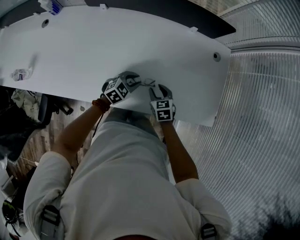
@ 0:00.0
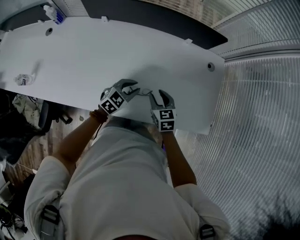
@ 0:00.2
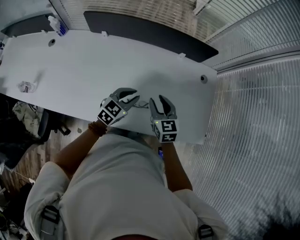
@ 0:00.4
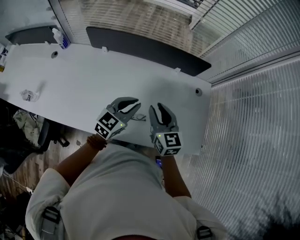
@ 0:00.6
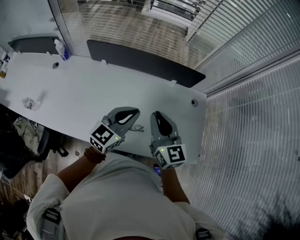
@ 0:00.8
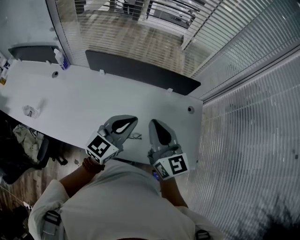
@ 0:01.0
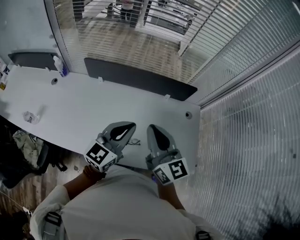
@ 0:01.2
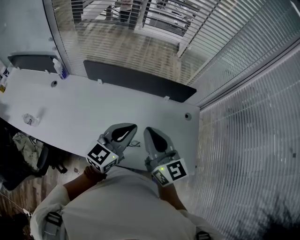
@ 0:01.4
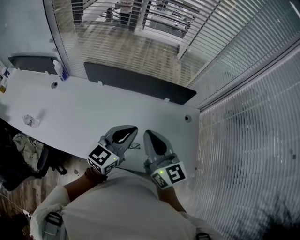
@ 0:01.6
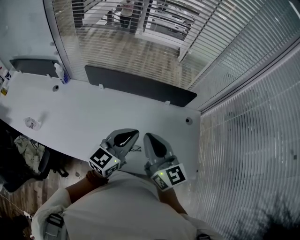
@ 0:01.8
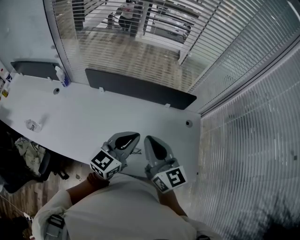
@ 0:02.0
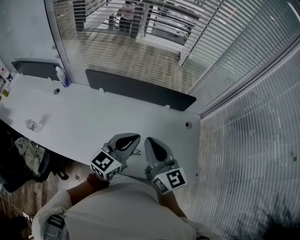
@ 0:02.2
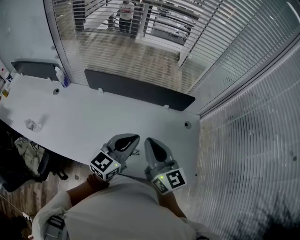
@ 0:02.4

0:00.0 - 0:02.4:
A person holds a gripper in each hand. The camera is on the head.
0:00.0 - 0:01.2: Both grippers move upward, some 40 cm. The right gripper tilts its fingers roughly 50 degrees upward, and closes its fingers. Meanwhile the left gripper tips its fingers upward by some 40 degrees, and closes its fingers.
0:01.2 - 0:02.4: There are only small adjustments of the grippers.

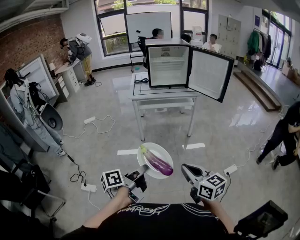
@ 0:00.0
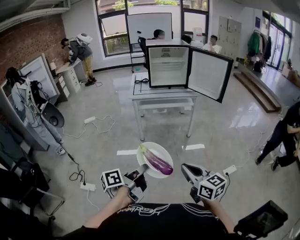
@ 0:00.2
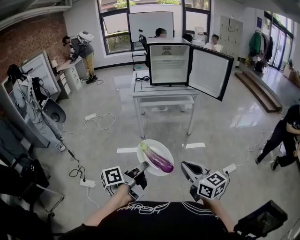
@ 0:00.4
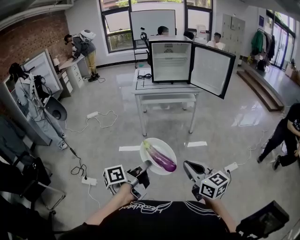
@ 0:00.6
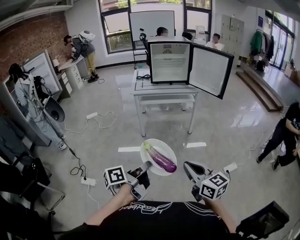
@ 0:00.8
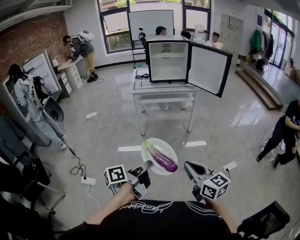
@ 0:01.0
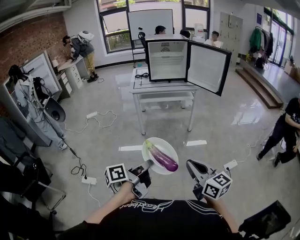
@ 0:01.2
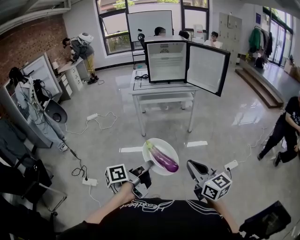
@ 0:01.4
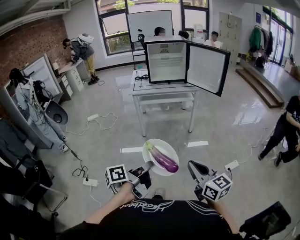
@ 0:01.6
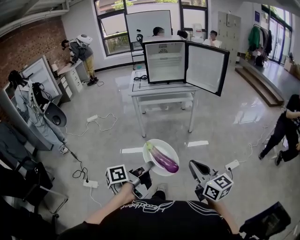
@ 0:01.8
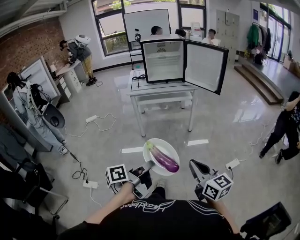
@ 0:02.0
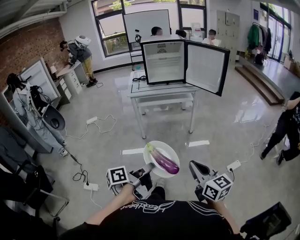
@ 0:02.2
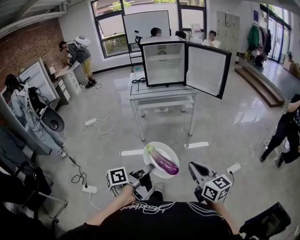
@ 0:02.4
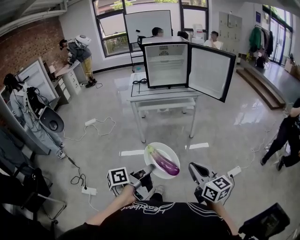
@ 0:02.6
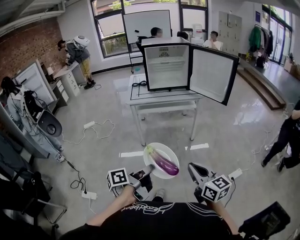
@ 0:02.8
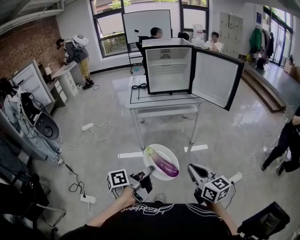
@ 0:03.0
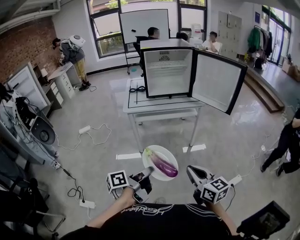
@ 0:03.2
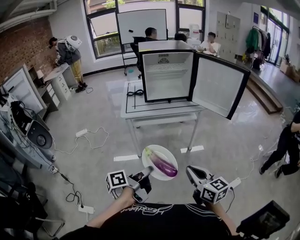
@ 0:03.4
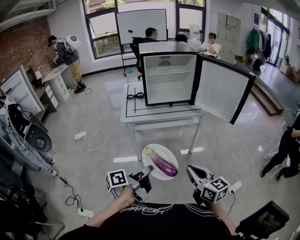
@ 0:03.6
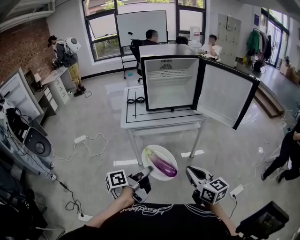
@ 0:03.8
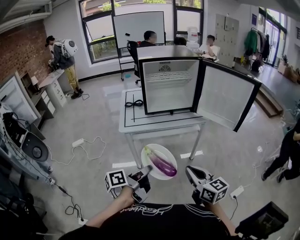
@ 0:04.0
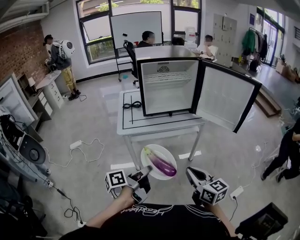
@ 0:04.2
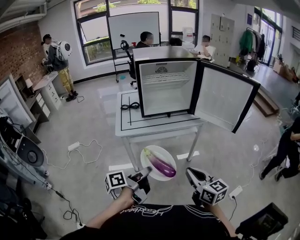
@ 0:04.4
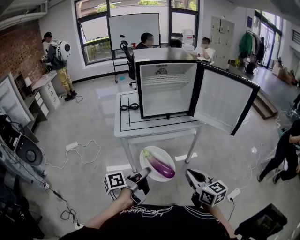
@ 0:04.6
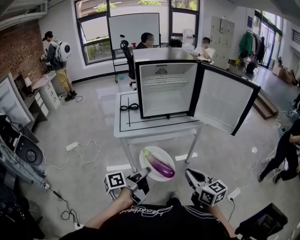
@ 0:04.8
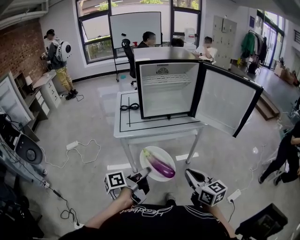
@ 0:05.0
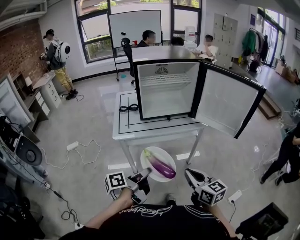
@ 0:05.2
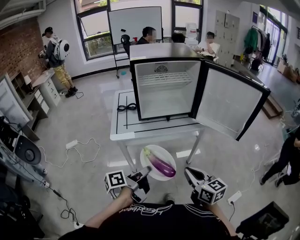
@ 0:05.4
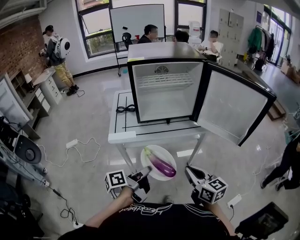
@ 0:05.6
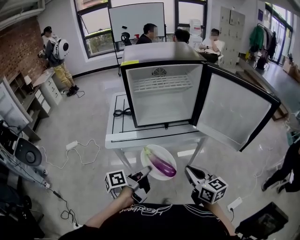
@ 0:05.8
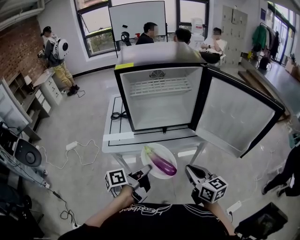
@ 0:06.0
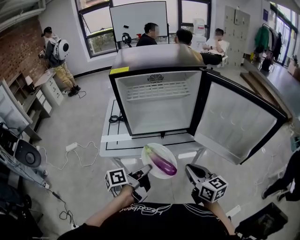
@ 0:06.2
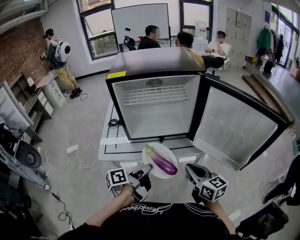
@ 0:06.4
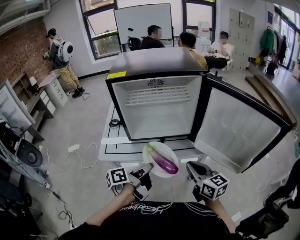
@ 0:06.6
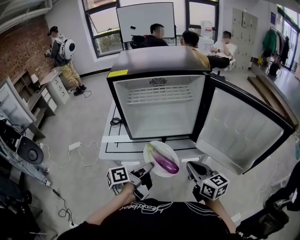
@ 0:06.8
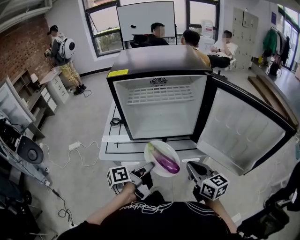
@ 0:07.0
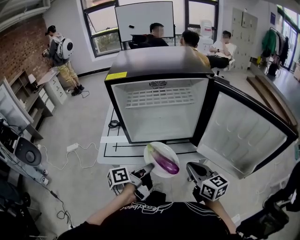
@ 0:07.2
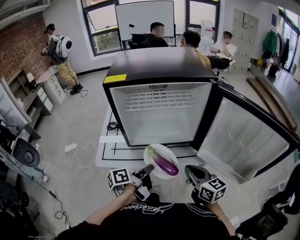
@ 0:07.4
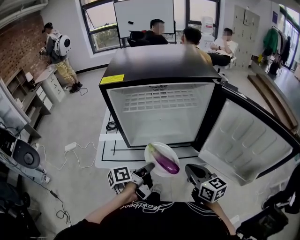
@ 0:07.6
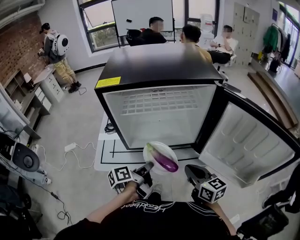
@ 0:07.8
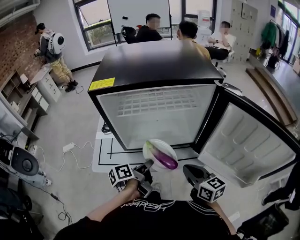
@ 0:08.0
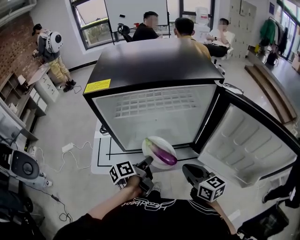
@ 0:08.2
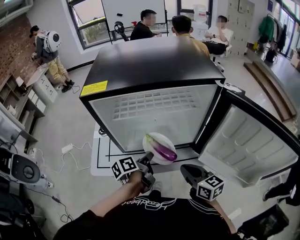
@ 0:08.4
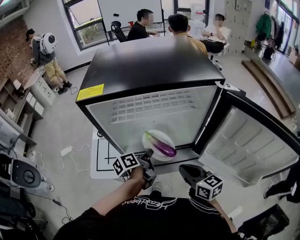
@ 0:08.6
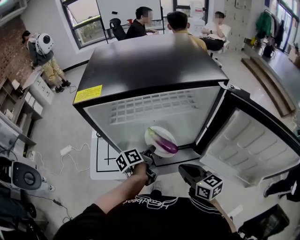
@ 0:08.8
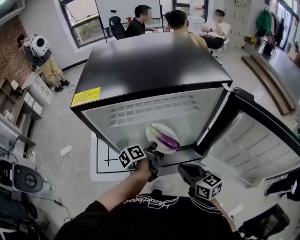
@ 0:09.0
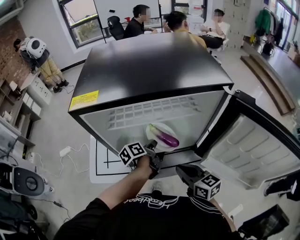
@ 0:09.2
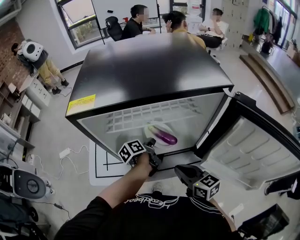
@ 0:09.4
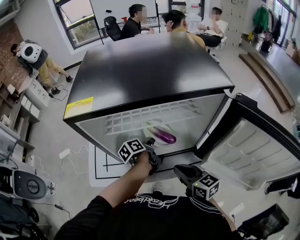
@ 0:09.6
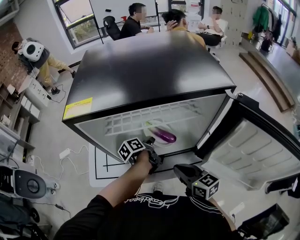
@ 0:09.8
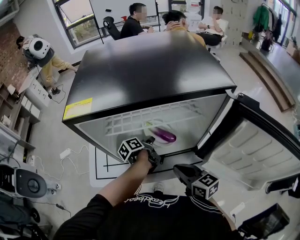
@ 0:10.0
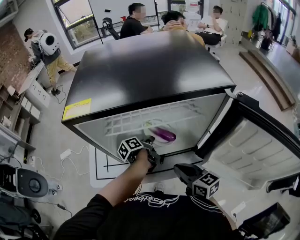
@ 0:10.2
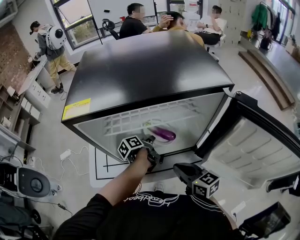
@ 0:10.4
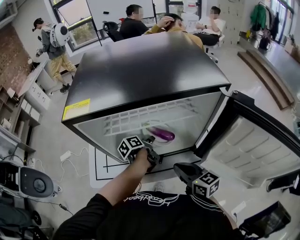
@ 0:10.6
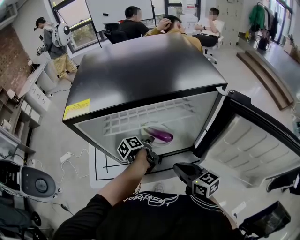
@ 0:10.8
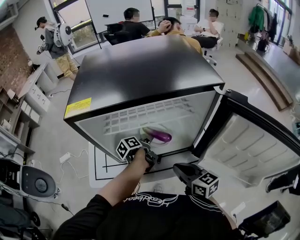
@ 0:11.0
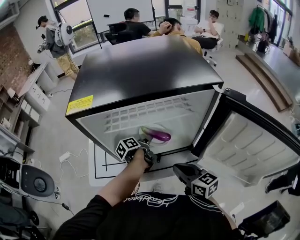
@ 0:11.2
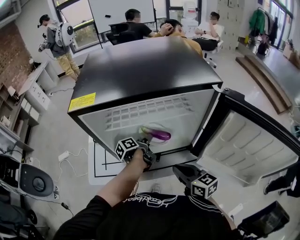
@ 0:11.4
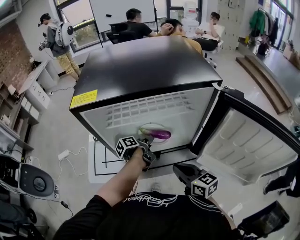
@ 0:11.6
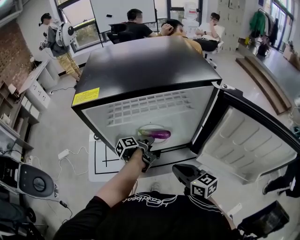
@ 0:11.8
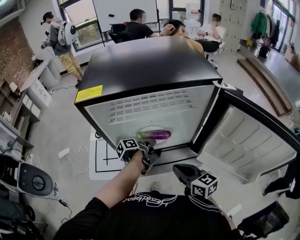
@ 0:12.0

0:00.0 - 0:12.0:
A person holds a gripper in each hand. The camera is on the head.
0:00.0 - 0:01.6: The right gripper moves to the right and backward, some 10 cm. Meanwhile the left gripper travels to the right by about 5 cm.
0:01.6 - 0:03.0: Both grippers travel together forward, some 20 cm.
0:03.0 - 0:04.4: The grippers both shift forward by some 25 cm.
0:04.4 - 0:06.0: Both grippers move forward, some 20 cm.
0:06.0 - 0:07.6: Both grippers move forward, roughly 15 cm.
0:07.6 - 0:09.0: The left gripper heads forward, covering approximately 20 cm. The right gripper travels forward by approximately 5 cm.
0:09.0 - 0:10.4: The left gripper moves forward, some 5 cm.
0:10.4 - 0:12.0: The left gripper travels backward by approximately 5 cm, and opens up.

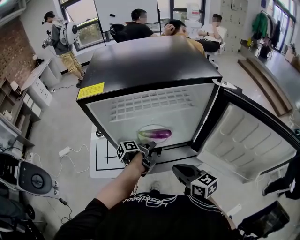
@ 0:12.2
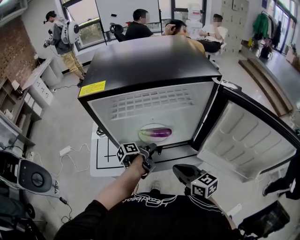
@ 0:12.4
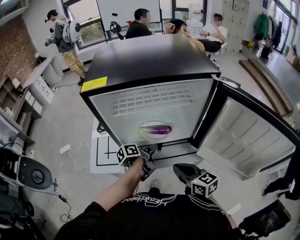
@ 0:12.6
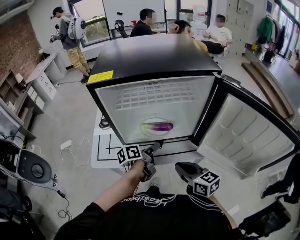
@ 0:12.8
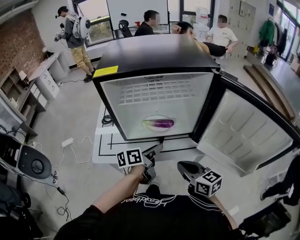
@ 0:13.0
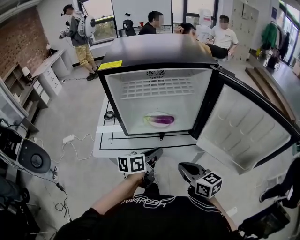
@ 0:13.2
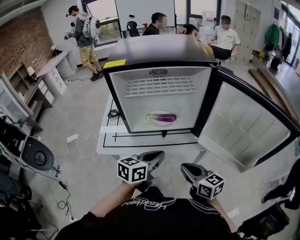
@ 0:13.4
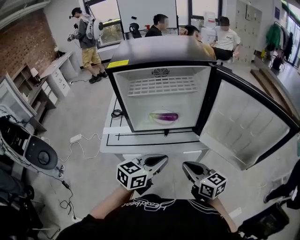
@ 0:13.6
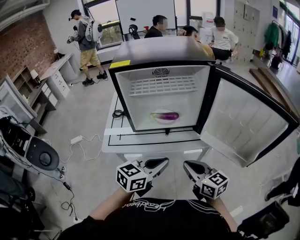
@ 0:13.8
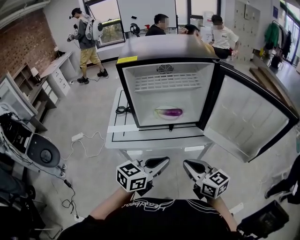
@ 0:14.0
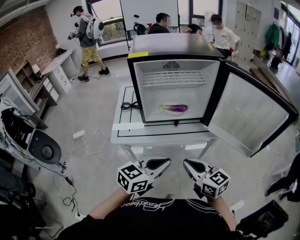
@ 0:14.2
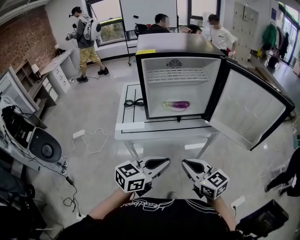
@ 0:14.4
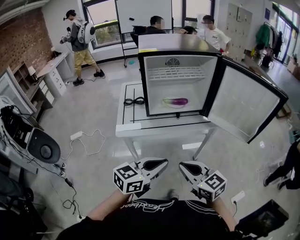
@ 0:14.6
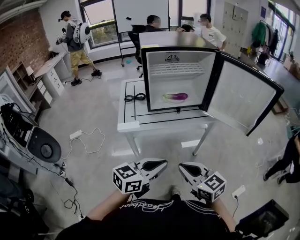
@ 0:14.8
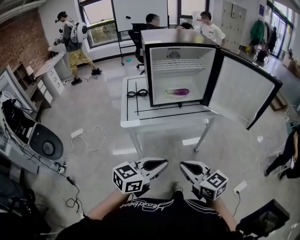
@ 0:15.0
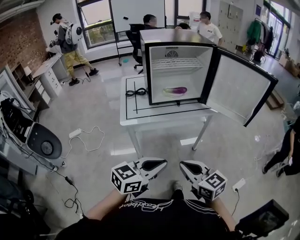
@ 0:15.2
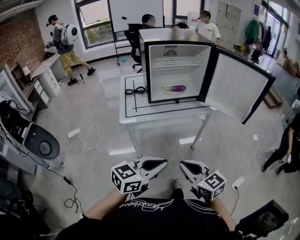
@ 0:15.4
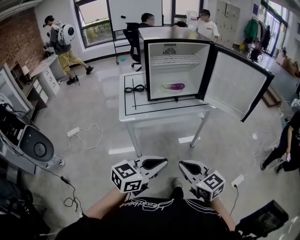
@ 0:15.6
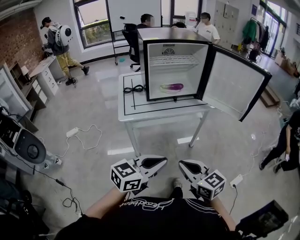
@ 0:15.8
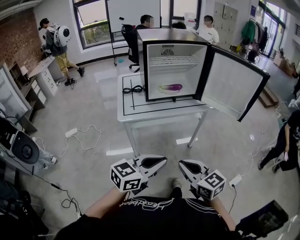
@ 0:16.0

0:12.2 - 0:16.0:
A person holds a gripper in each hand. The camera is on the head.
0:12.2 - 0:13.4: The right gripper goes some 10 cm backward; the left gripper goes approximately 25 cm backward and upward, twists approximately 70 degrees clockwise, seen from behind, and closes up.
0:13.4 - 0:14.8: The left gripper travels backward by some 25 cm, and swivels some 20 degrees; the right gripper moves backward and to the left, roughly 25 cm.
0:14.8 - 0:16.0: The two grippers go roughly 10 cm backward.

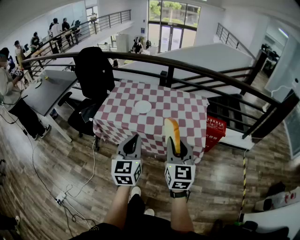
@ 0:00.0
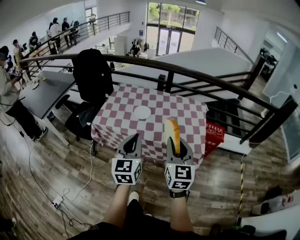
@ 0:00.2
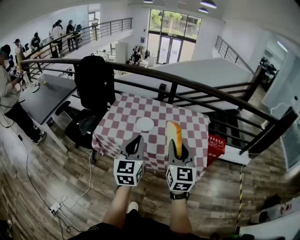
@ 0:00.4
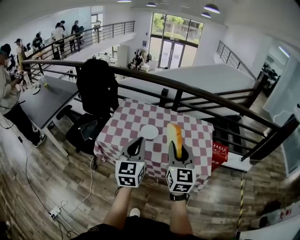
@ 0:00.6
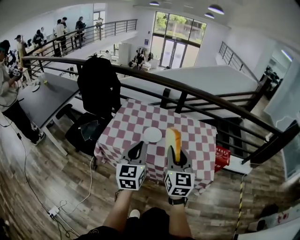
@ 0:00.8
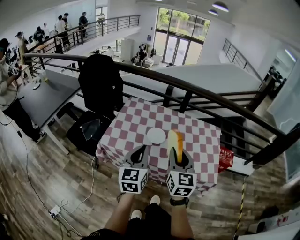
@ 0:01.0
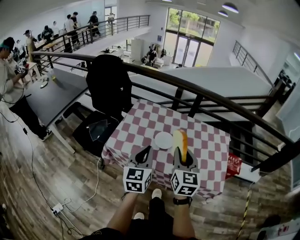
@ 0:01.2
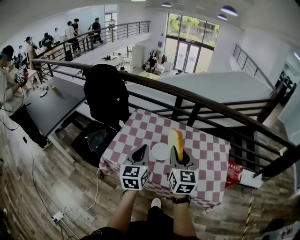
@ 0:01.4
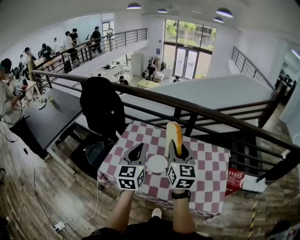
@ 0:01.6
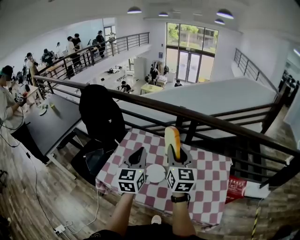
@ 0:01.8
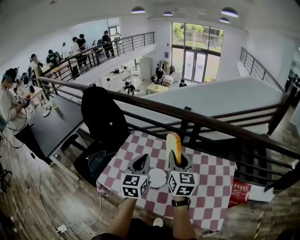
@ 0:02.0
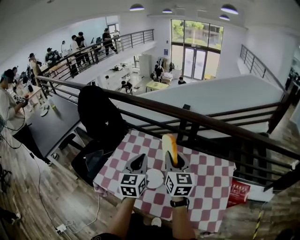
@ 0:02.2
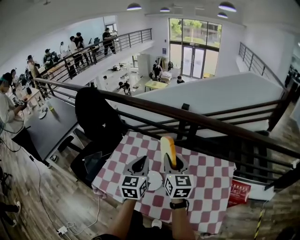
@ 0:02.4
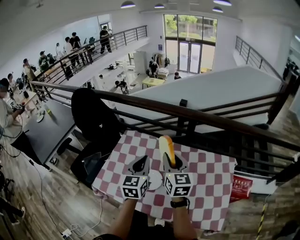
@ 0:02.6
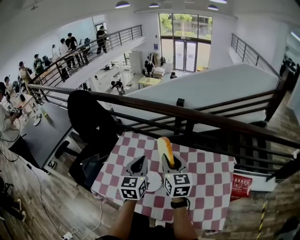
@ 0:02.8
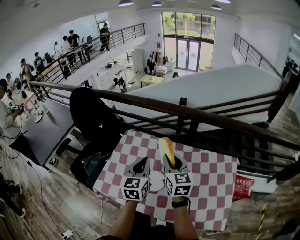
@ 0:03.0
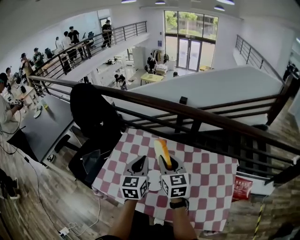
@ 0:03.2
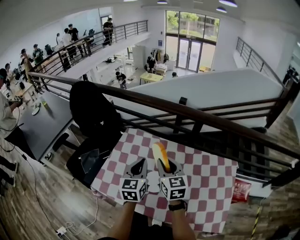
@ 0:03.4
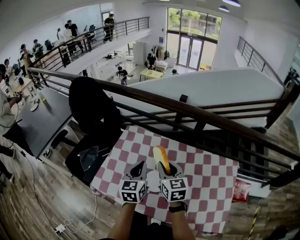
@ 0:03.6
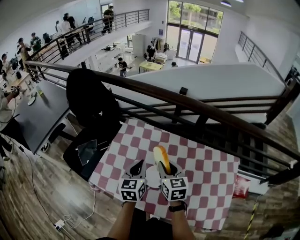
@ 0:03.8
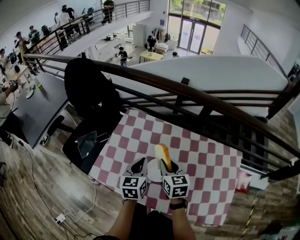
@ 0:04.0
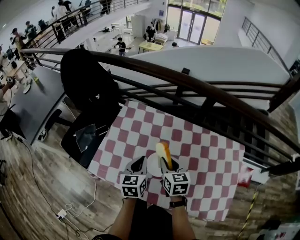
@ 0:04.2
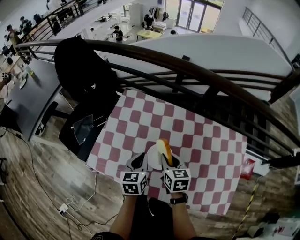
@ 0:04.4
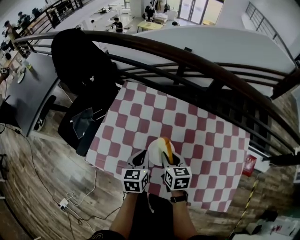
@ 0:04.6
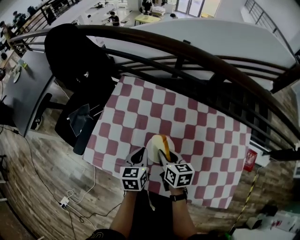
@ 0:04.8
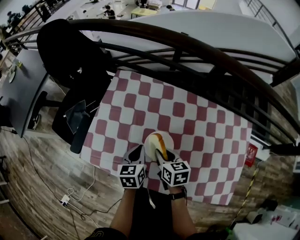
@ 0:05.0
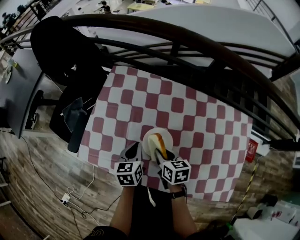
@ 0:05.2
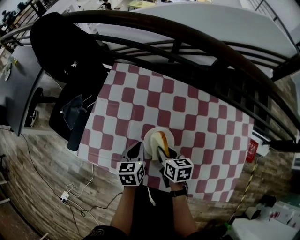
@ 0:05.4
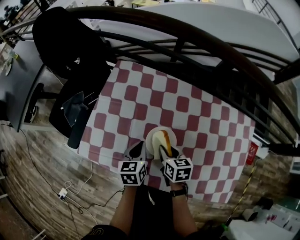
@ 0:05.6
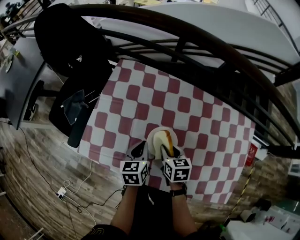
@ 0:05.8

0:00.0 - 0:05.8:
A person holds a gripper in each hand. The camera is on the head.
0:00.0 - 0:01.4: Both grippers travel together forward and to the left, about 30 cm.
0:01.4 - 0:02.8: The right gripper travels forward by roughly 20 cm. The left gripper shifts roughly 20 cm forward and to the right.
0:02.8 - 0:04.4: The right gripper is displaced downward by roughly 20 cm, and swivels some 30 degrees. Meanwhile the left gripper heads downward and to the left, covering about 20 cm, and swivels some 20 degrees.
0:04.4 - 0:05.8: The grippers both shift downward by roughly 10 cm.
